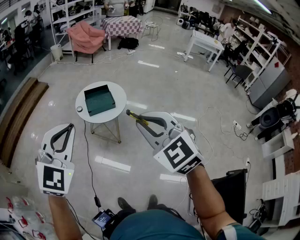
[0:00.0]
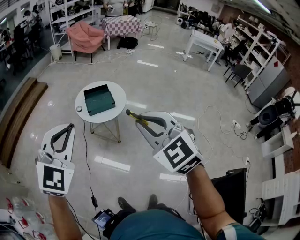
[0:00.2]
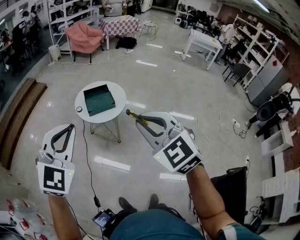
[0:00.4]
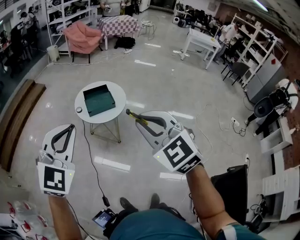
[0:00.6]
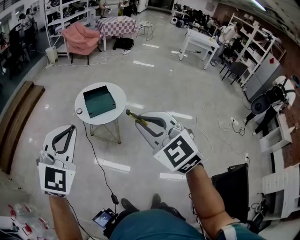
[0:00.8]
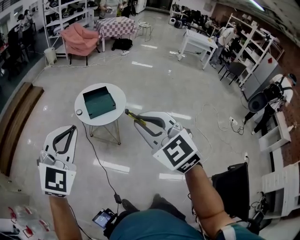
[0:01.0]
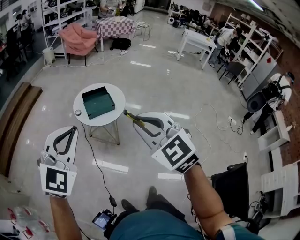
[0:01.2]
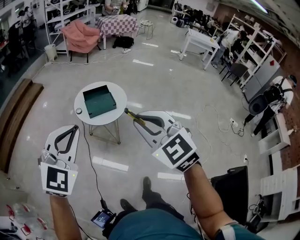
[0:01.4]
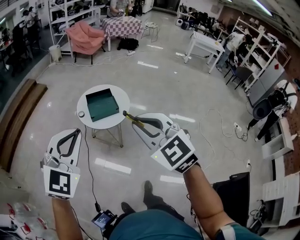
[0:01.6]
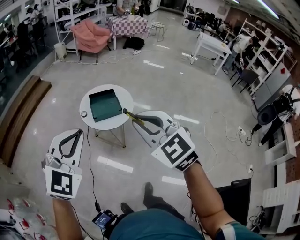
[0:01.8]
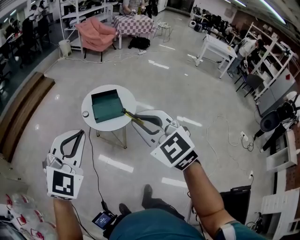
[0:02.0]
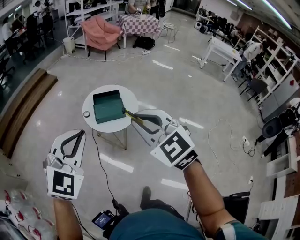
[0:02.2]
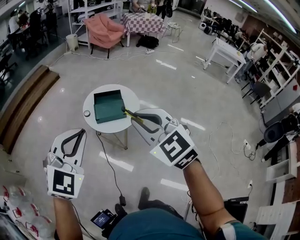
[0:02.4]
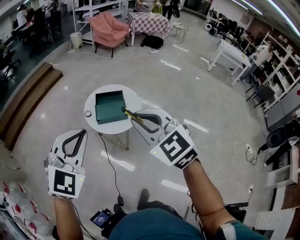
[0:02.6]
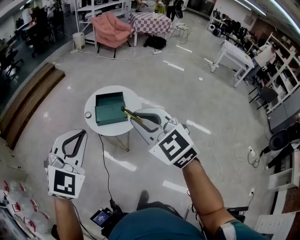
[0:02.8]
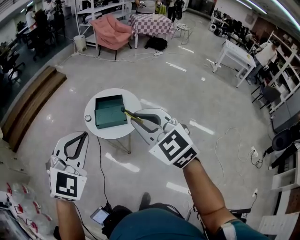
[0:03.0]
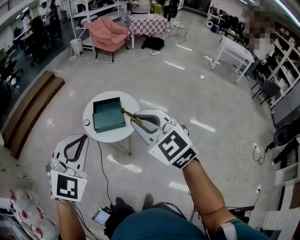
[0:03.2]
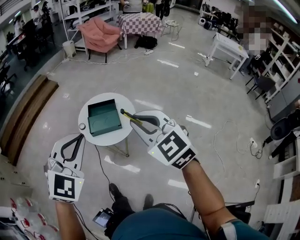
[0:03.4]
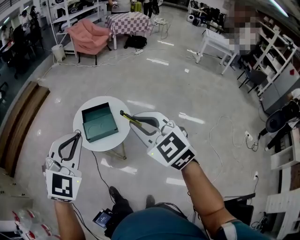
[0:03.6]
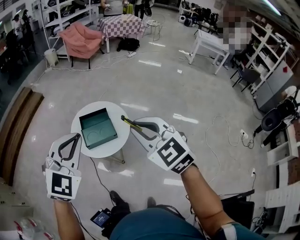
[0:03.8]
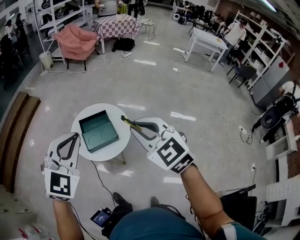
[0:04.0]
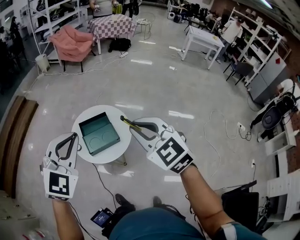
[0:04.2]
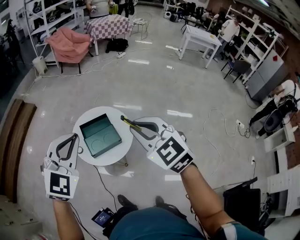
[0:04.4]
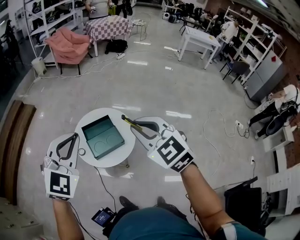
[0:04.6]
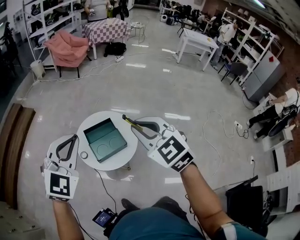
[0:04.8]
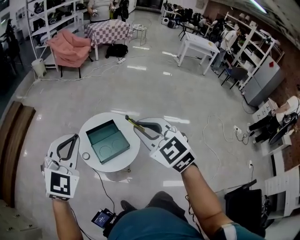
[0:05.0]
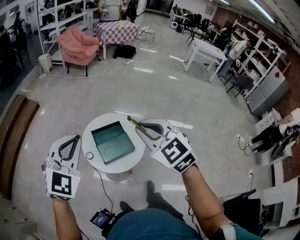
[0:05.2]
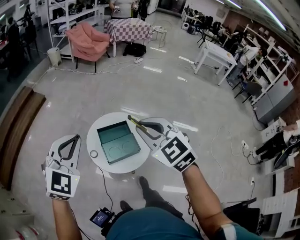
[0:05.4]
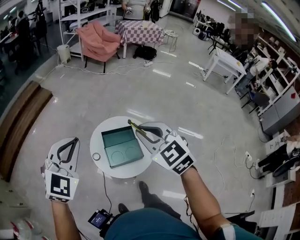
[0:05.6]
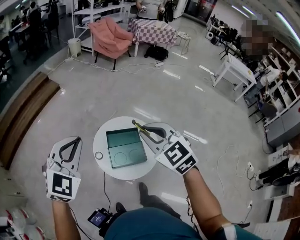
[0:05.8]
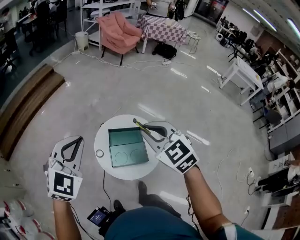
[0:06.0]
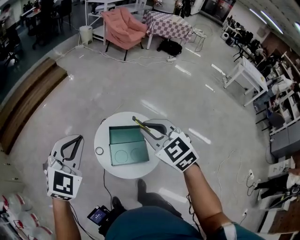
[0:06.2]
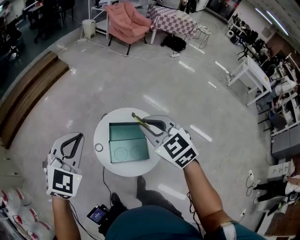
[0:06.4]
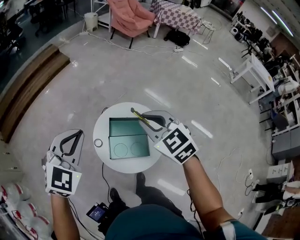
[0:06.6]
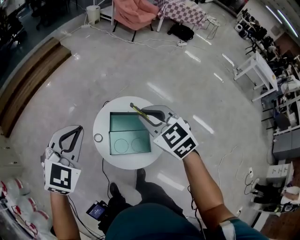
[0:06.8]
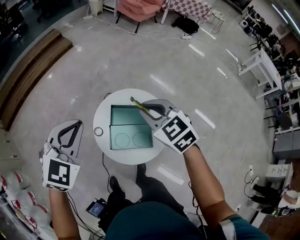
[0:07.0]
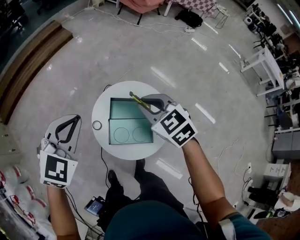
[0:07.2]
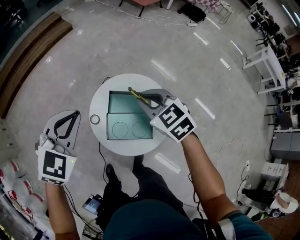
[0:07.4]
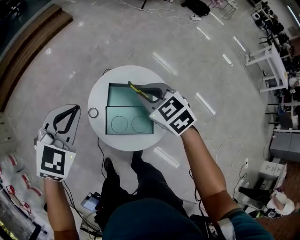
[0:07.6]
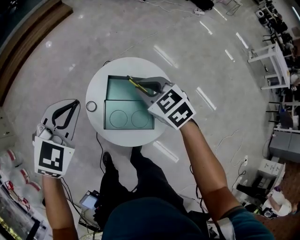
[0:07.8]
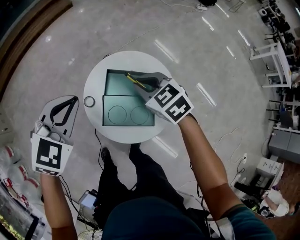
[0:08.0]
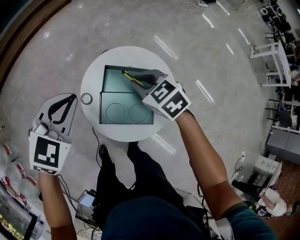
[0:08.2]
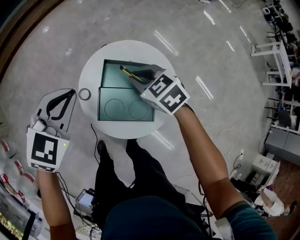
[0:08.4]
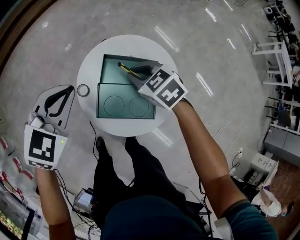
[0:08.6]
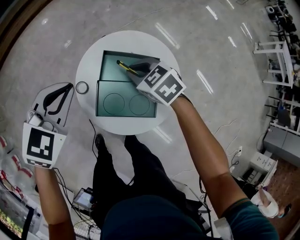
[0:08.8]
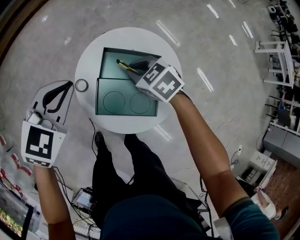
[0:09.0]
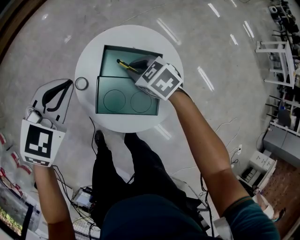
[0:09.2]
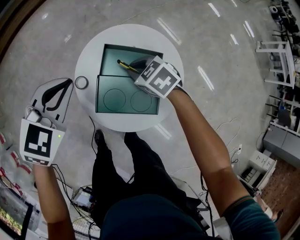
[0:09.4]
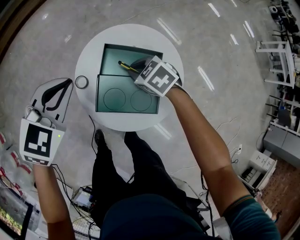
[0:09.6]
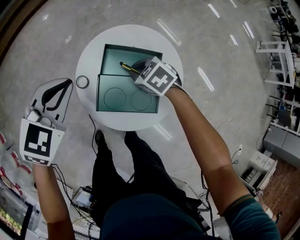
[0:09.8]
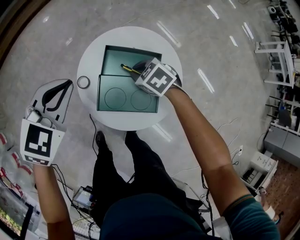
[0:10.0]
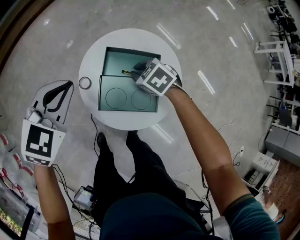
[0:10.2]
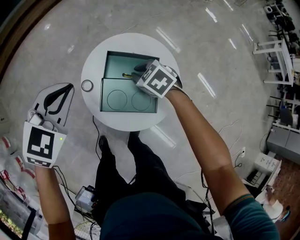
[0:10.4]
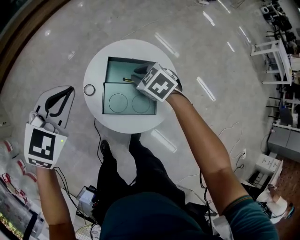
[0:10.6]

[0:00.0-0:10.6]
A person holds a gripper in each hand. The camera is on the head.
0:00.0 to 0:01.6: The right gripper goes about 10 cm forward and to the left. Meanwhile the left gripper moves forward, some 10 cm.
0:01.6 to 0:03.0: The two grippers go roughly 25 cm forward and to the right.
0:03.0 to 0:04.6: The two grippers go approximately 30 cm forward and to the left. The right gripper swivels roughly 20 degrees.
0:04.6 to 0:06.0: Both grippers move forward and to the left, about 30 cm. The left gripper turns by approximately 20 degrees.
0:06.0 to 0:07.6: Both grippers move downward and forward, roughly 35 cm. The right gripper rotates some 20 degrees.
0:07.6 to 0:09.0: The two grippers go some 15 cm downward.
0:09.0 to 0:10.6: The left gripper goes approximately 5 cm upward.

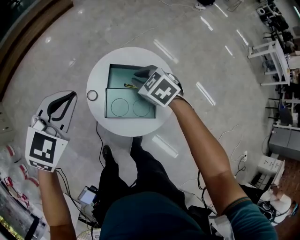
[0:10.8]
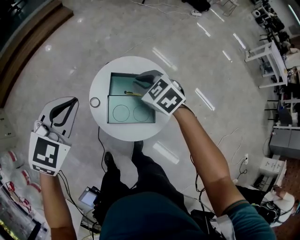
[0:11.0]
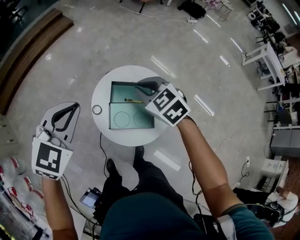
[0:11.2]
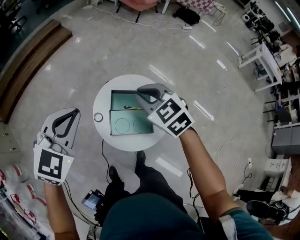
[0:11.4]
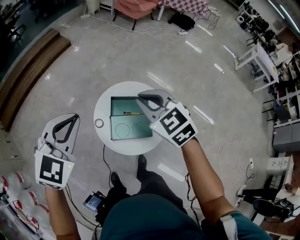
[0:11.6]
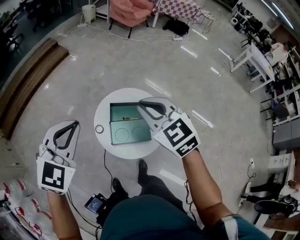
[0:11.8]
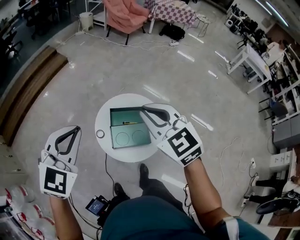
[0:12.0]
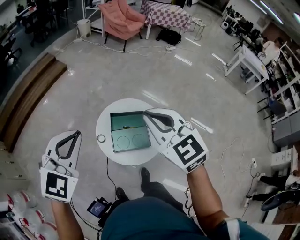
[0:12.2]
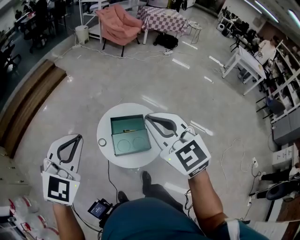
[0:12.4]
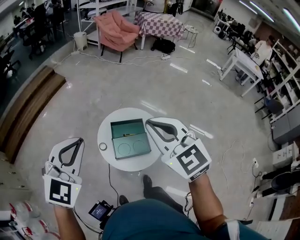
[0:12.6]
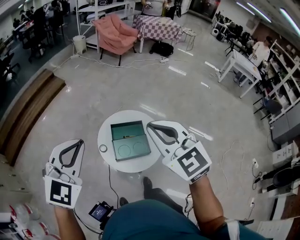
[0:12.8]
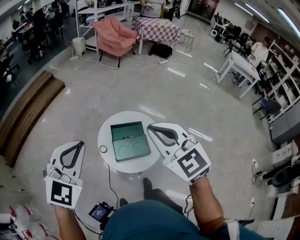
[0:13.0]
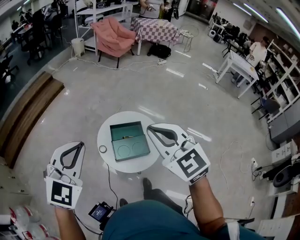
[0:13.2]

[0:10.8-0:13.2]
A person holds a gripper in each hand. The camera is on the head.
0:10.8 to 0:12.0: The right gripper is displaced upward and backward by some 40 cm, and points its fingers approximately 30 degrees further upward; the left gripper shifts approximately 30 cm upward and backward.
0:12.0 to 0:13.2: The grippers both shift backward and upward by roughly 15 cm.

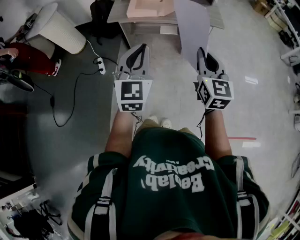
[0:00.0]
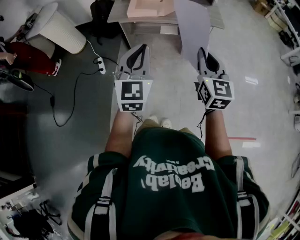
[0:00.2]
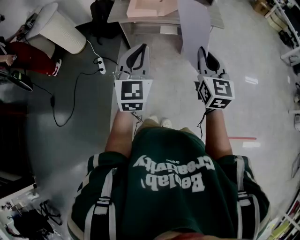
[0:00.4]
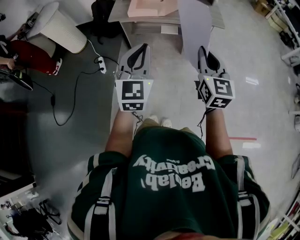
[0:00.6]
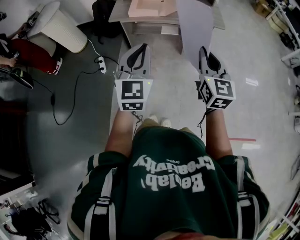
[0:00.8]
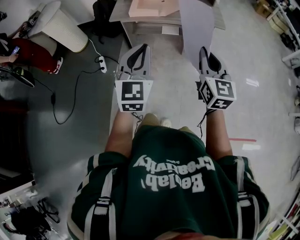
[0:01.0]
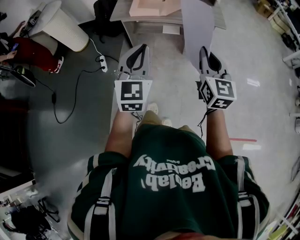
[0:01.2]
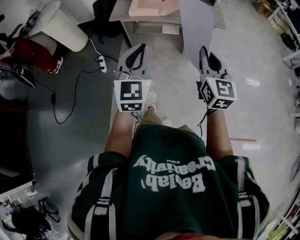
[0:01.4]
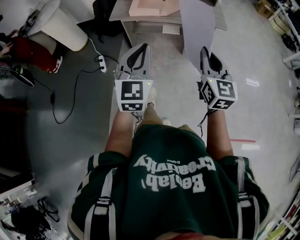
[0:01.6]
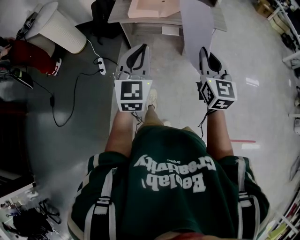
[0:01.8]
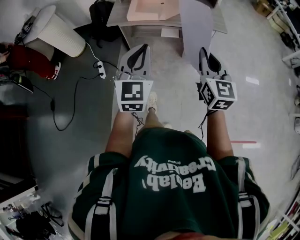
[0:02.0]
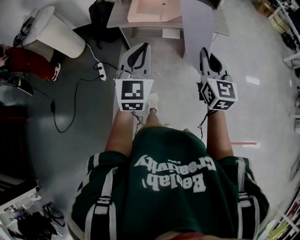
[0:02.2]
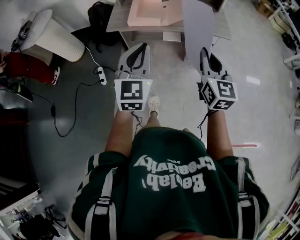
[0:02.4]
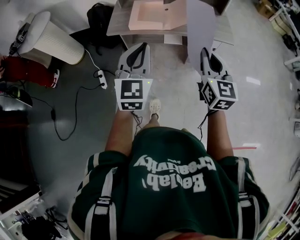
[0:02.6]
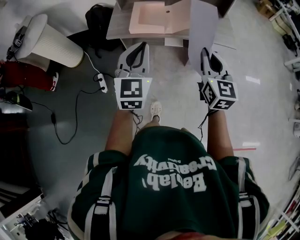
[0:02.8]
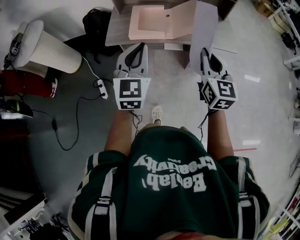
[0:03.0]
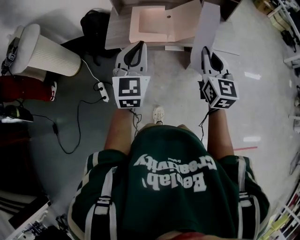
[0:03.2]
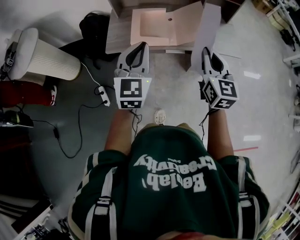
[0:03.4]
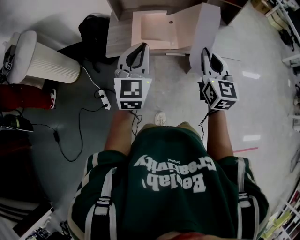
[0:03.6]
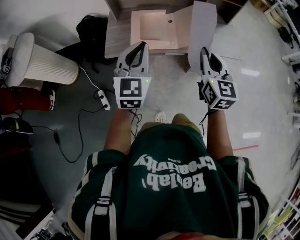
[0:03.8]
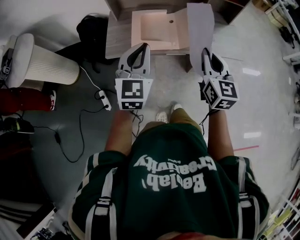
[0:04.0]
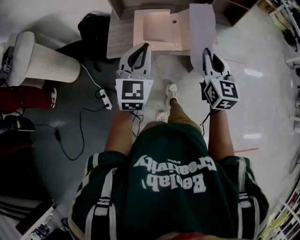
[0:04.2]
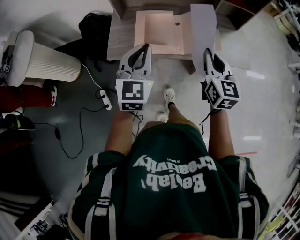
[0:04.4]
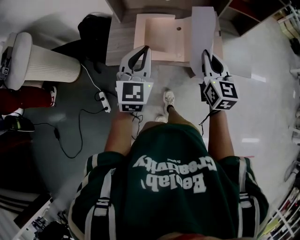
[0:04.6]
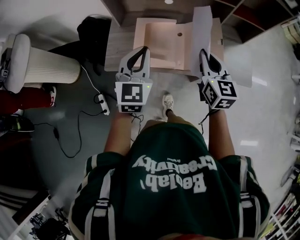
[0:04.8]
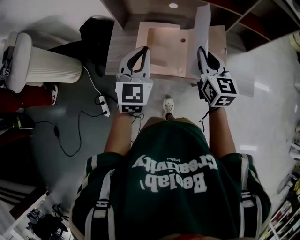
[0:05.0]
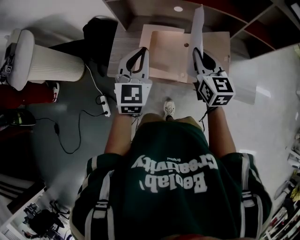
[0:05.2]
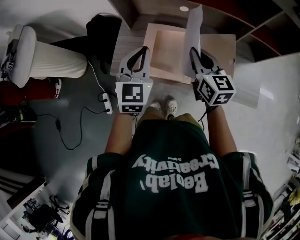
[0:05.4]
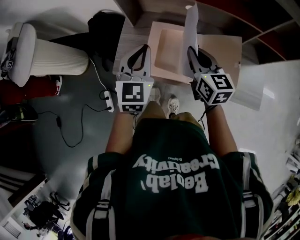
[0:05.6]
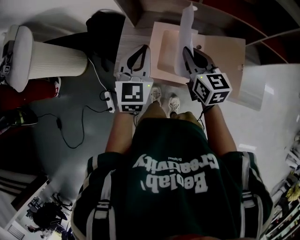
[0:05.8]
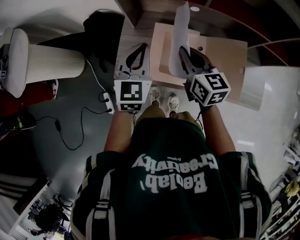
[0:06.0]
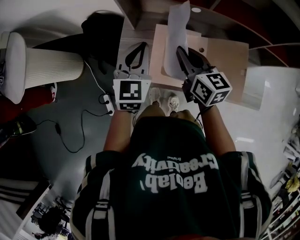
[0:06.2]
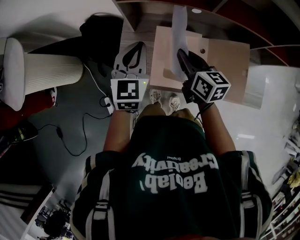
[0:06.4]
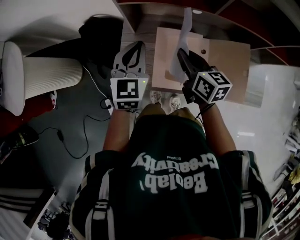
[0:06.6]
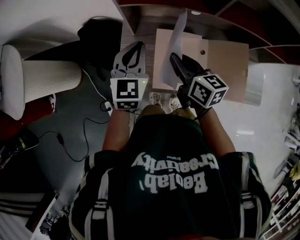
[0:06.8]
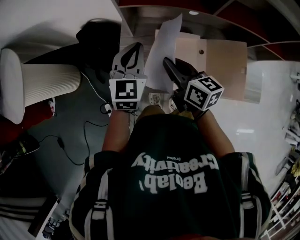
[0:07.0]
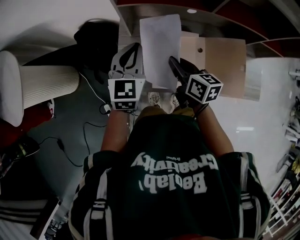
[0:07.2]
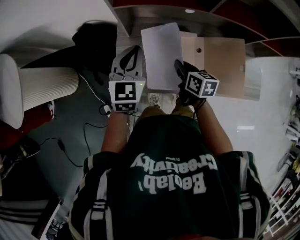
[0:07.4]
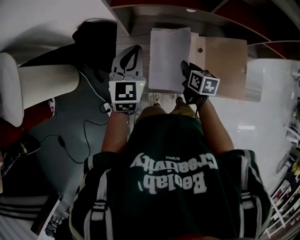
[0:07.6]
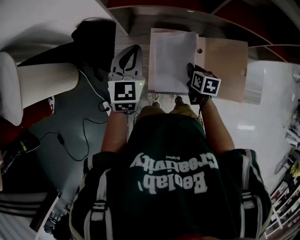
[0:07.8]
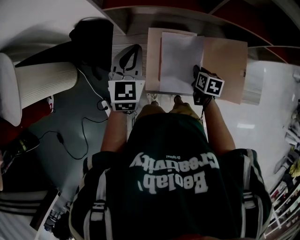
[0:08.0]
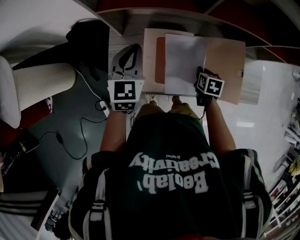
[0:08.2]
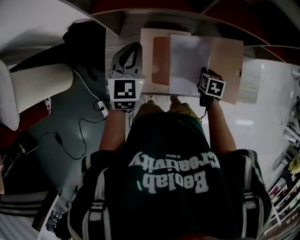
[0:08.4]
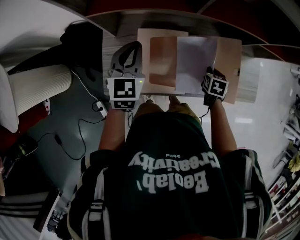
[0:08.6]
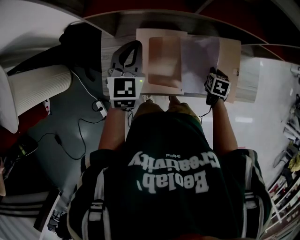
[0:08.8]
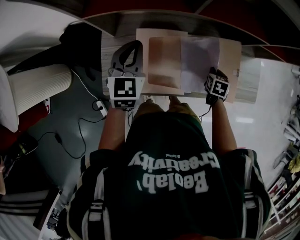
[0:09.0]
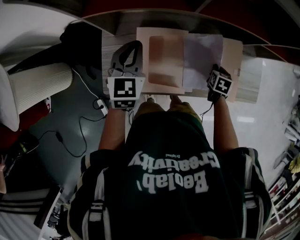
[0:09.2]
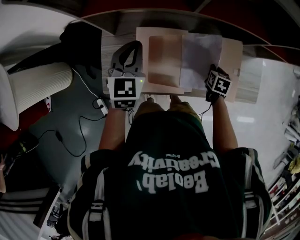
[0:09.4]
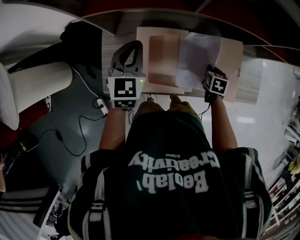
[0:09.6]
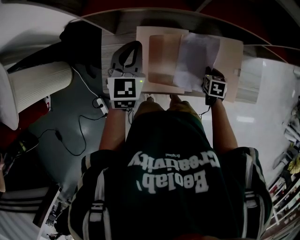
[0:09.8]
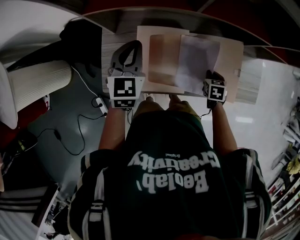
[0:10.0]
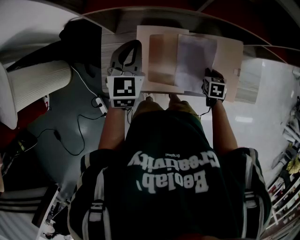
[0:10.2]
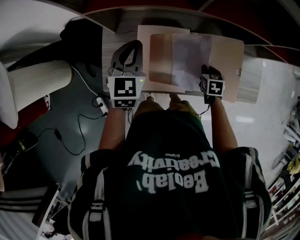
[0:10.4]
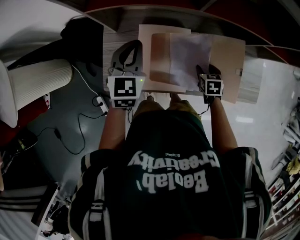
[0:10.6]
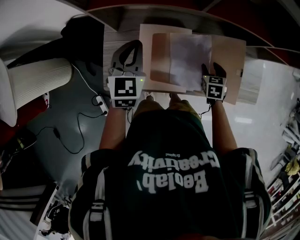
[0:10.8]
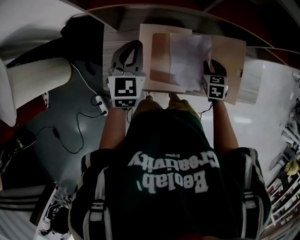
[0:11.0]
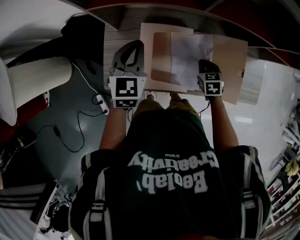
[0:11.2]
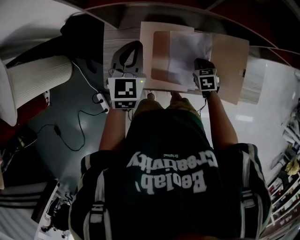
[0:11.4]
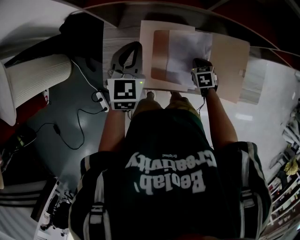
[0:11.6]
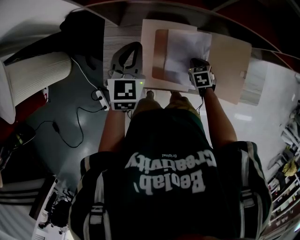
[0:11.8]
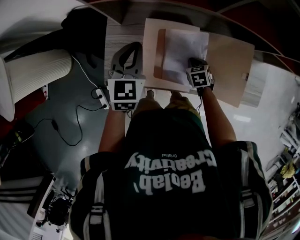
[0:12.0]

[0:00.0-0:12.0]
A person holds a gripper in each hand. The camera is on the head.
0:00.0 to 0:01.6: The grippers make only small movements.
0:01.6 to 0:03.0: Both grippers travel together forward, approximately 30 cm.
0:03.0 to 0:04.4: The grippers both shift forward by roughly 20 cm.
0:04.4 to 0:06.0: The left gripper travels forward by about 25 cm. The right gripper goes approximately 35 cm forward and to the left, and turns by roughly 30 degrees.
0:06.0 to 0:07.6: The right gripper moves downward, approximately 15 cm, and swivels roughly 30 degrees. The left gripper travels forward by approximately 5 cm.
0:07.6 to 0:09.0: The right gripper heads to the right, covering some 25 cm, and rotates about 30 degrees. The left gripper moves to the right and forward, roughly 10 cm.
0:09.0 to 0:10.4: The right gripper heads to the left, covering approximately 5 cm.
0:10.4 to 0:12.0: The right gripper is displaced to the left and downward by roughly 10 cm, and opens and closes again.
